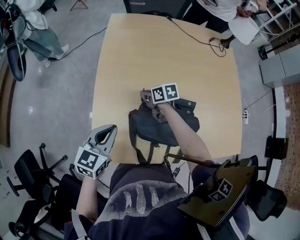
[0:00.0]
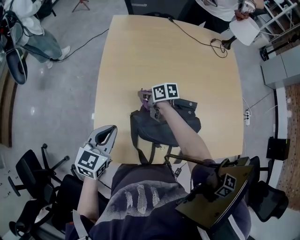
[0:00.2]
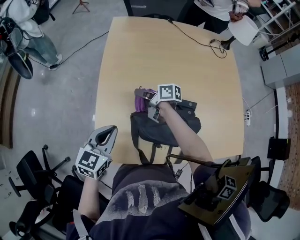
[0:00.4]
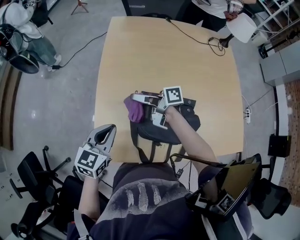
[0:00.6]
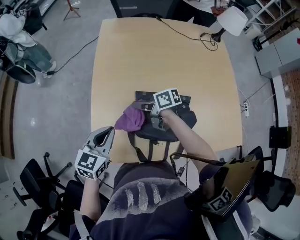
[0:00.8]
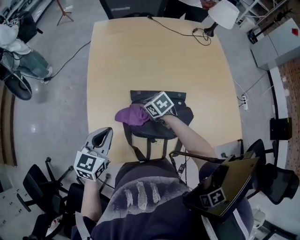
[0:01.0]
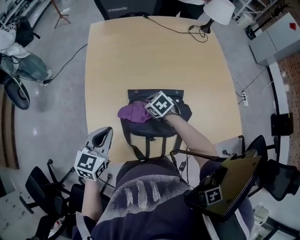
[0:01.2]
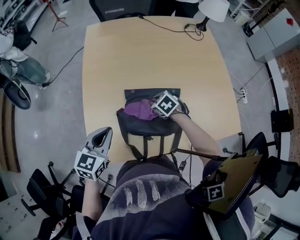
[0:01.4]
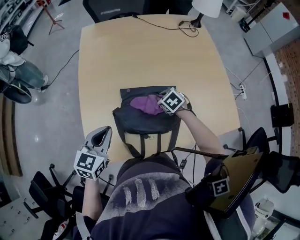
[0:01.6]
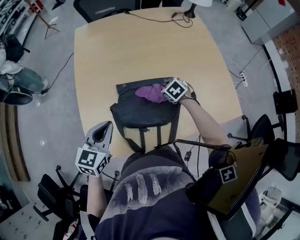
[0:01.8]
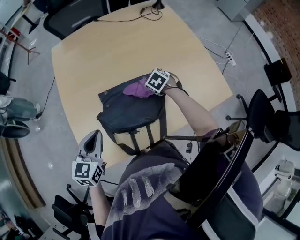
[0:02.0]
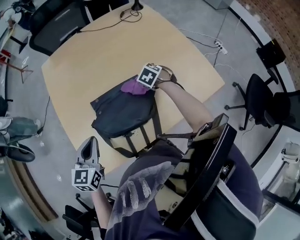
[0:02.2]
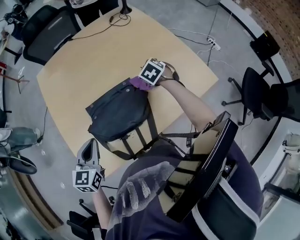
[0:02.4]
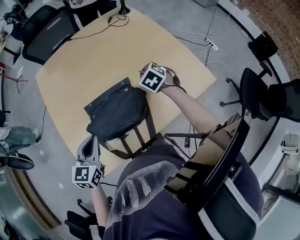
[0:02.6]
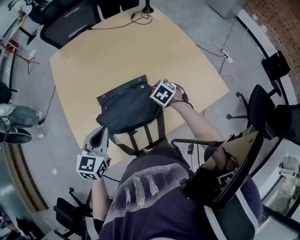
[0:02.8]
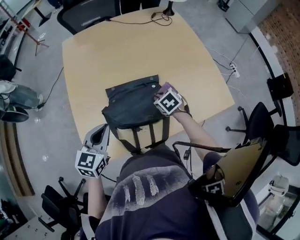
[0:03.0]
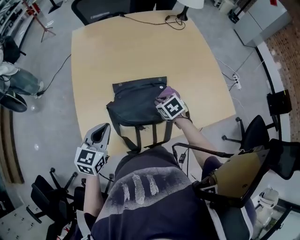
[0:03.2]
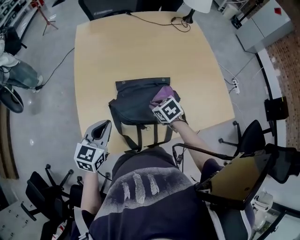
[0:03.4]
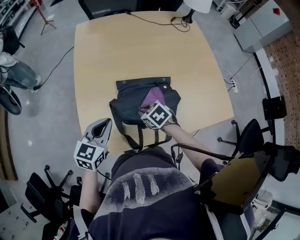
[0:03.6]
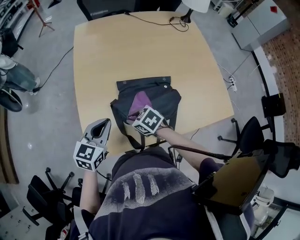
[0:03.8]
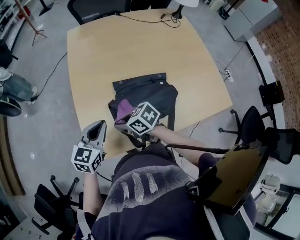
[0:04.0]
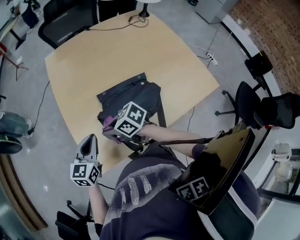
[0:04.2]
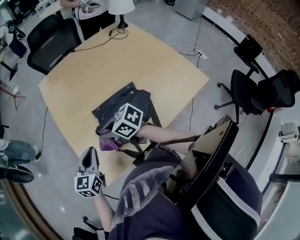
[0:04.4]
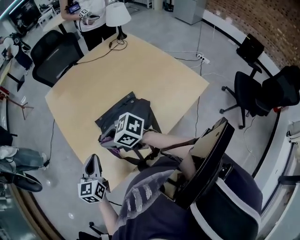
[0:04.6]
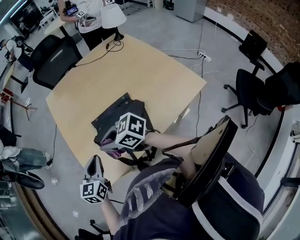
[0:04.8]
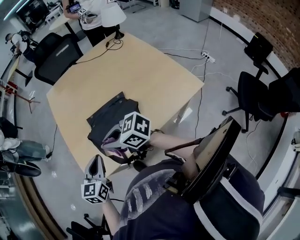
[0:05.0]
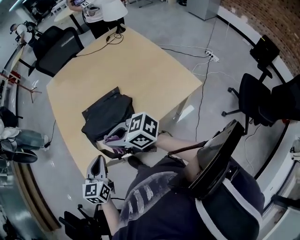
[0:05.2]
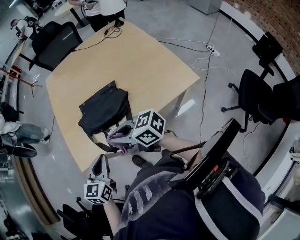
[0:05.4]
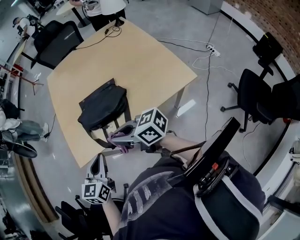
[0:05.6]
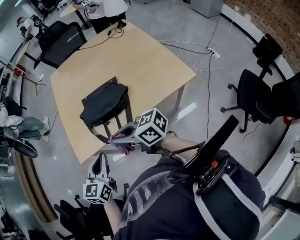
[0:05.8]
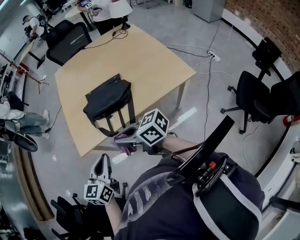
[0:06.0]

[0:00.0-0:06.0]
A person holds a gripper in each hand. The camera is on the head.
0.0 to 1.6 s: The left gripper shifts by about 5 cm. The right gripper shifts approximately 20 cm to the right and backward, and swivels some 40 degrees.
1.6 to 3.0 s: The left gripper goes about 5 cm to the right. Meanwhile the right gripper travels to the right and backward by some 10 cm.
3.0 to 4.4 s: The right gripper shifts by some 30 cm, and points its fingers approximately 40 degrees further upward. Meanwhile the left gripper moves some 10 cm.
4.4 to 6.0 s: The grippers both shift backward by roughly 35 cm.

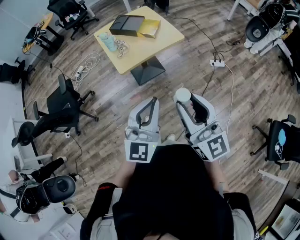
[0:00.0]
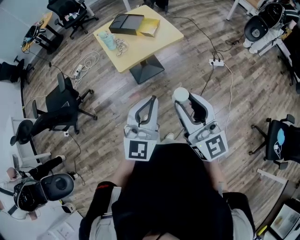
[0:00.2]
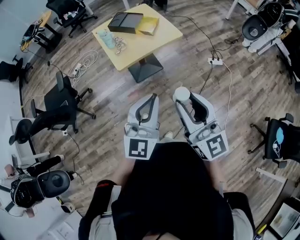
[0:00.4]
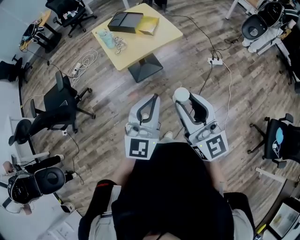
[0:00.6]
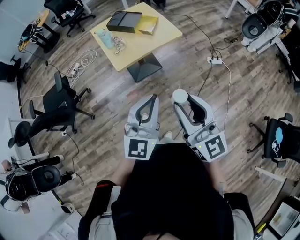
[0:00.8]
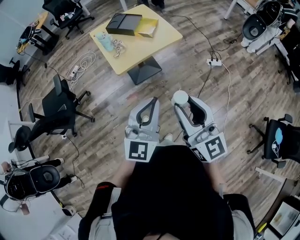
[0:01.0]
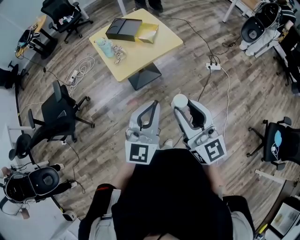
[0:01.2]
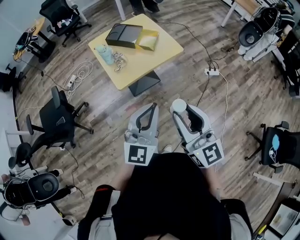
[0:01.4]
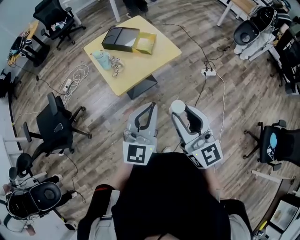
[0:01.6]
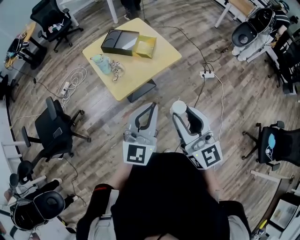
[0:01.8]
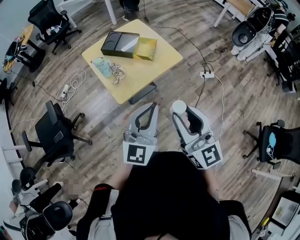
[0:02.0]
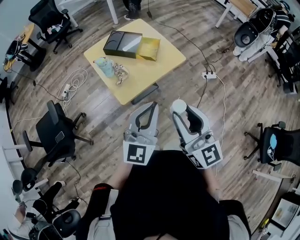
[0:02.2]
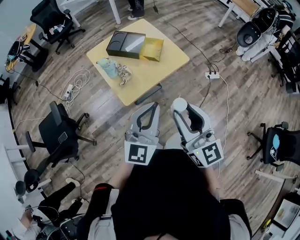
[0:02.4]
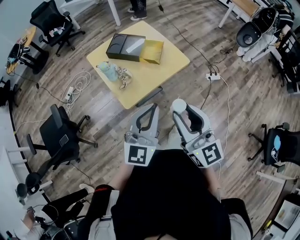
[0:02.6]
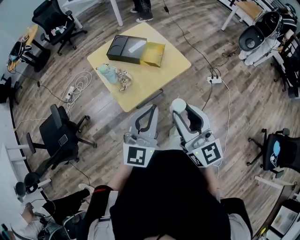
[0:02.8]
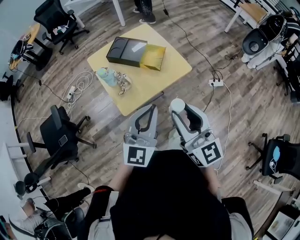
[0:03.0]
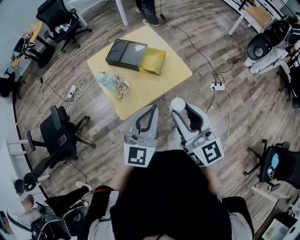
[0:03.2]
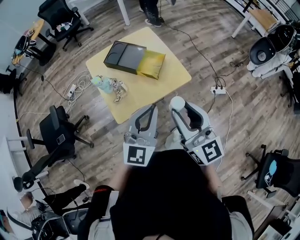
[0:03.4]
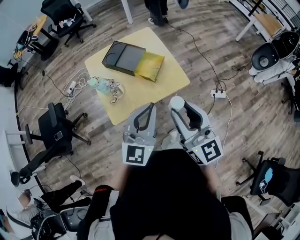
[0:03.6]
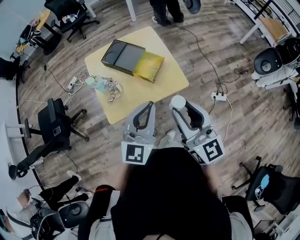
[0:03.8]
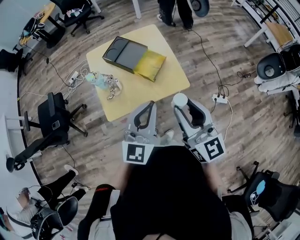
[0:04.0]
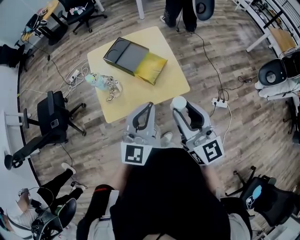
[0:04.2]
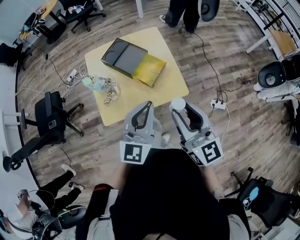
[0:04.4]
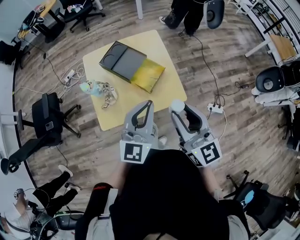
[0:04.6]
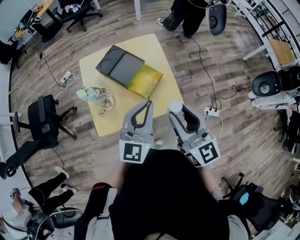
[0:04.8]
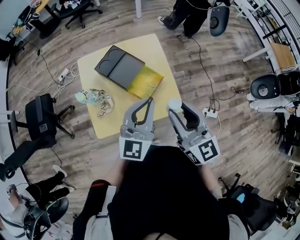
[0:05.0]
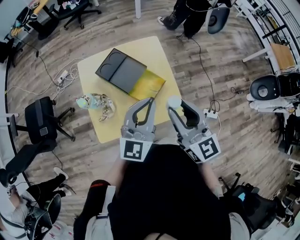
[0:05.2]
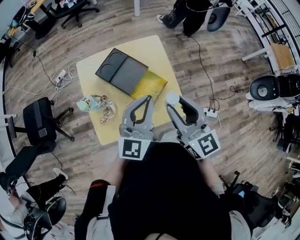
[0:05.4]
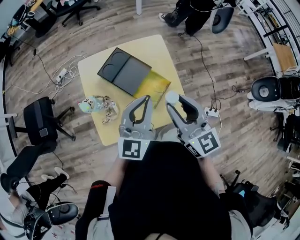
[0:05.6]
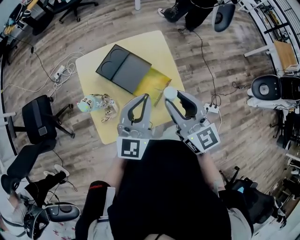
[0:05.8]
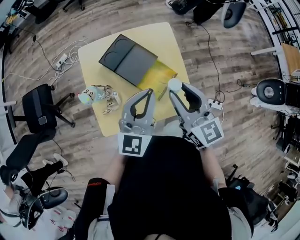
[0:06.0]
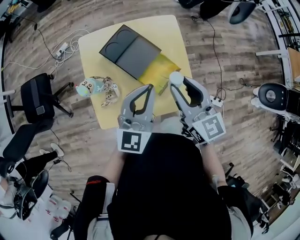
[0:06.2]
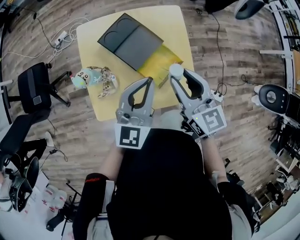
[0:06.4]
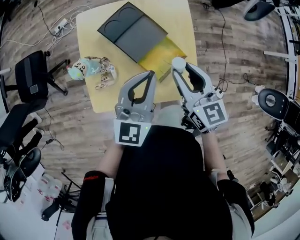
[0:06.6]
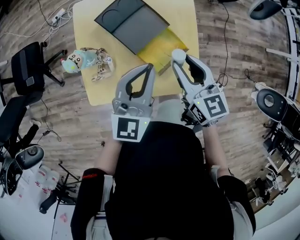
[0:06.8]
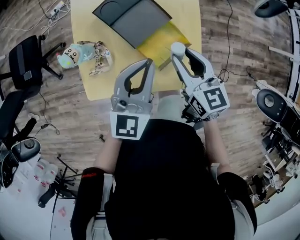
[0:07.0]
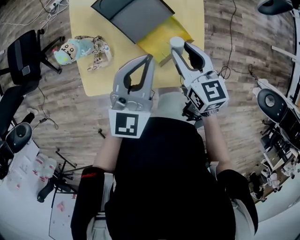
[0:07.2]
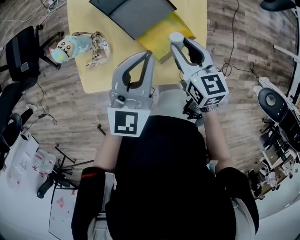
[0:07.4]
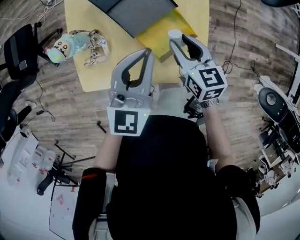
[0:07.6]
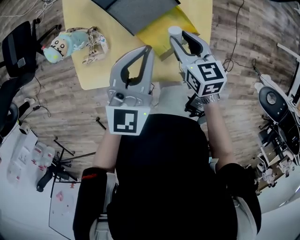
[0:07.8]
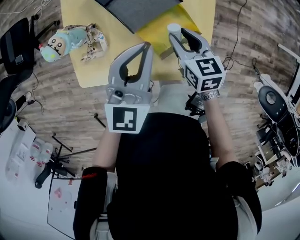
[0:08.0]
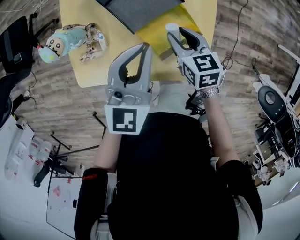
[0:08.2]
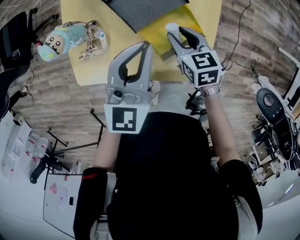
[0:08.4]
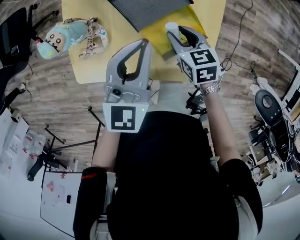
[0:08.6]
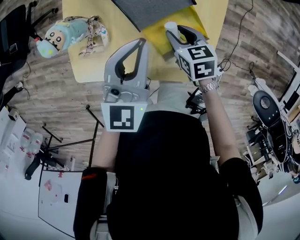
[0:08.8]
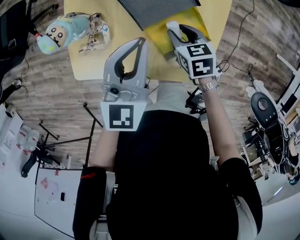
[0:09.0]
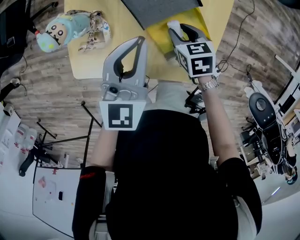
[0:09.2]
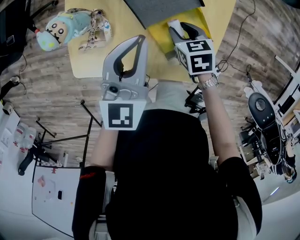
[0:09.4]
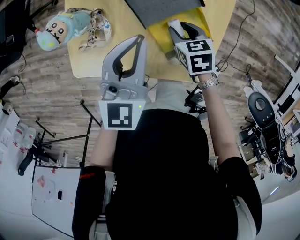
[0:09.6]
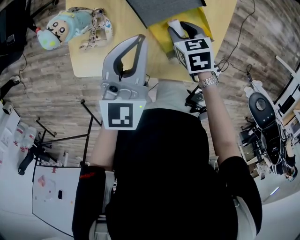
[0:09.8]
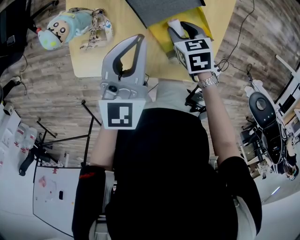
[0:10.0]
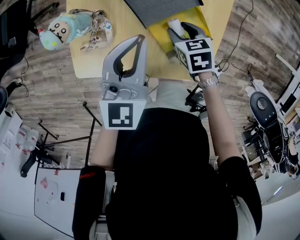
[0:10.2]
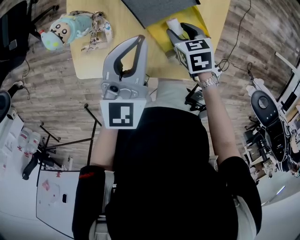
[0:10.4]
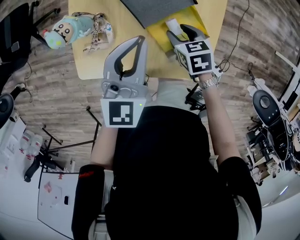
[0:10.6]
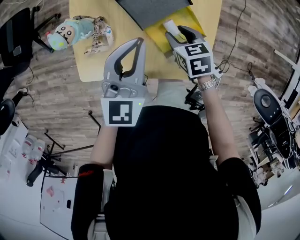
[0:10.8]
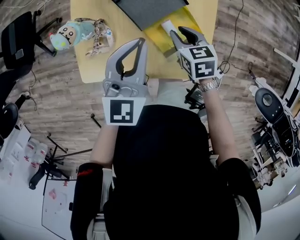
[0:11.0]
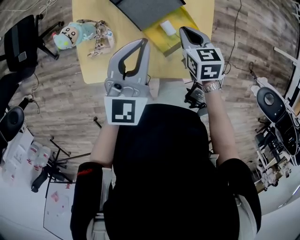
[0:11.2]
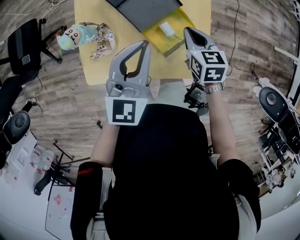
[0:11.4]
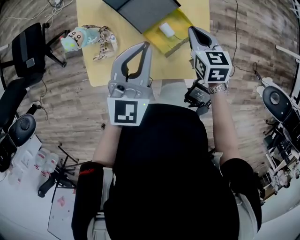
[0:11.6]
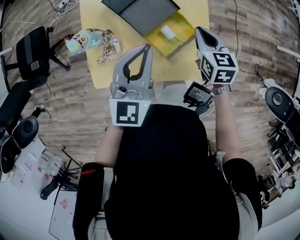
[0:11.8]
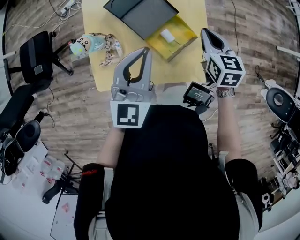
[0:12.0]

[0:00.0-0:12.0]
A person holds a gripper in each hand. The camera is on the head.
0.0 to 1.6 s: The left gripper shifts approximately 15 cm forward, while the right gripper heads forward and to the left, covering roughly 15 cm.
1.6 to 3.0 s: Both grippers travel together forward, roughly 15 cm.
3.0 to 4.4 s: The grippers both shift forward and to the right by some 20 cm.
4.4 to 6.0 s: Both grippers travel together forward, roughly 20 cm.
6.0 to 7.6 s: The right gripper travels downward by about 20 cm, and turns by some 30 degrees. Meanwhile the left gripper is displaced downward by about 10 cm.
7.6 to 9.0 s: The right gripper heads downward, covering some 10 cm, and swivels approximately 30 degrees. The left gripper travels downward by roughly 5 cm.
9.0 to 10.4 s: The grippers move only a little.
10.4 to 12.0 s: The right gripper goes some 20 cm upward and to the right, changes its angle by some 40 degrees, and closes up; the left gripper shifts some 10 cm upward.

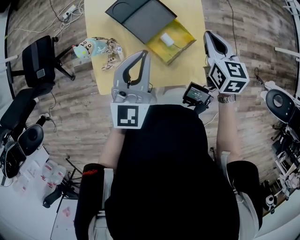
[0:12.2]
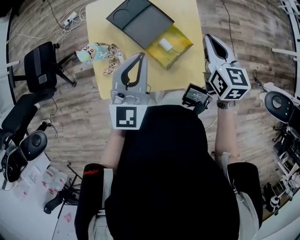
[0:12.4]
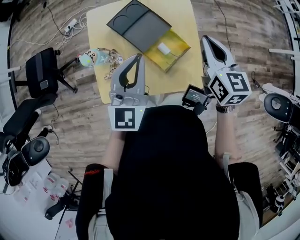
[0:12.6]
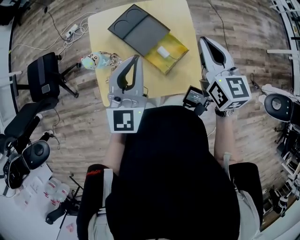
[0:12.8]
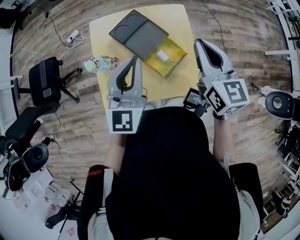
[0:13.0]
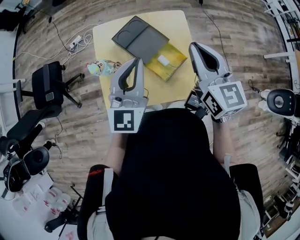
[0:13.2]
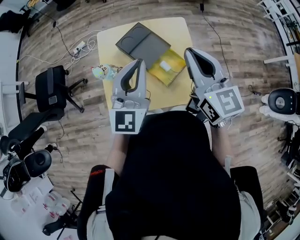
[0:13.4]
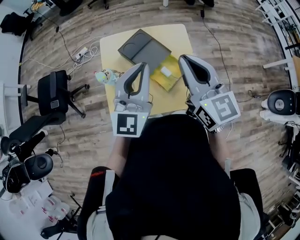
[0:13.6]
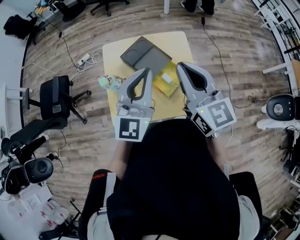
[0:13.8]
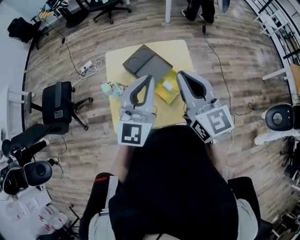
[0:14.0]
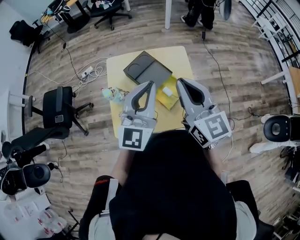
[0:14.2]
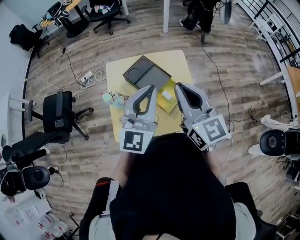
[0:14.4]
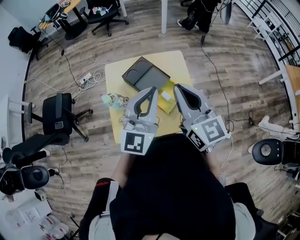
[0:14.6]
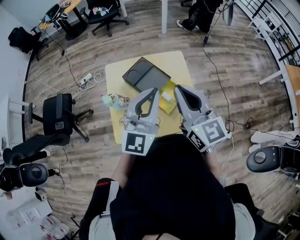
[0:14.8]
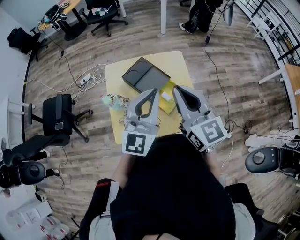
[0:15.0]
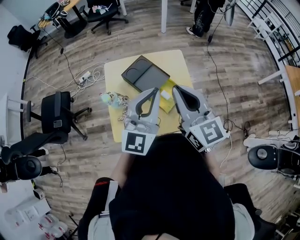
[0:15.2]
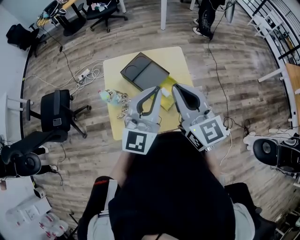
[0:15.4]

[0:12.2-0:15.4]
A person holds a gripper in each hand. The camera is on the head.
12.2 to 13.8 s: The left gripper moves upward, approximately 15 cm; the right gripper travels upward, to the left and backward by roughly 25 cm, and rotates roughly 30 degrees.
13.8 to 15.4 s: The grippers make only small movements.

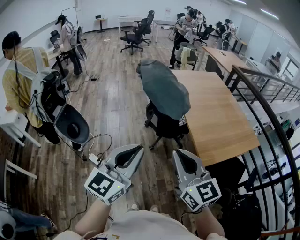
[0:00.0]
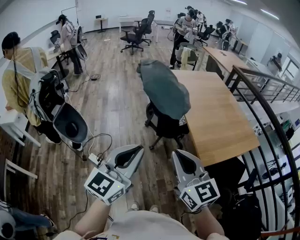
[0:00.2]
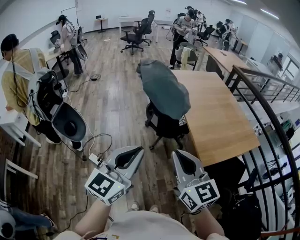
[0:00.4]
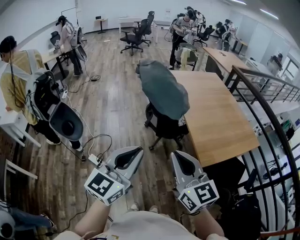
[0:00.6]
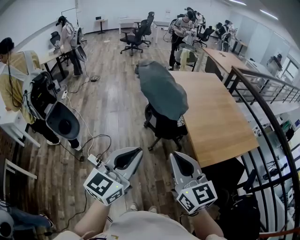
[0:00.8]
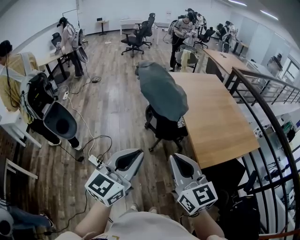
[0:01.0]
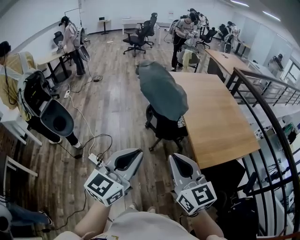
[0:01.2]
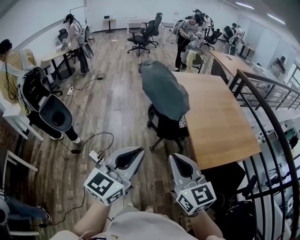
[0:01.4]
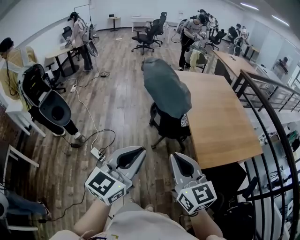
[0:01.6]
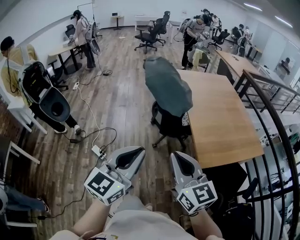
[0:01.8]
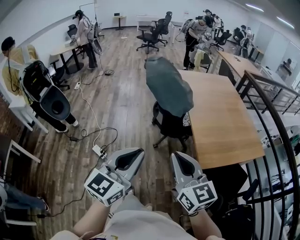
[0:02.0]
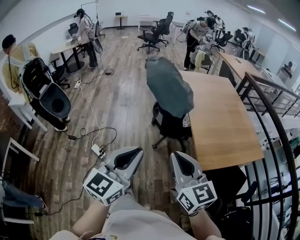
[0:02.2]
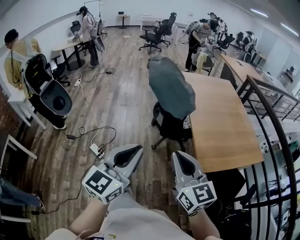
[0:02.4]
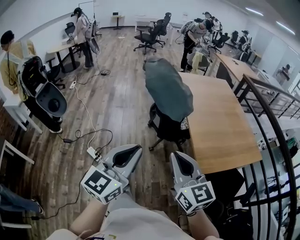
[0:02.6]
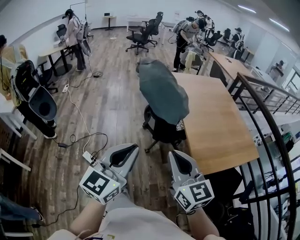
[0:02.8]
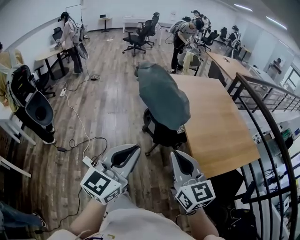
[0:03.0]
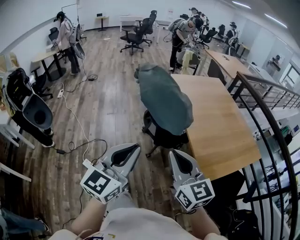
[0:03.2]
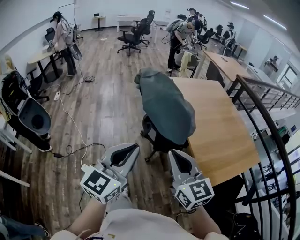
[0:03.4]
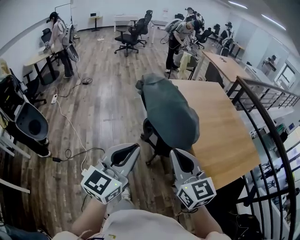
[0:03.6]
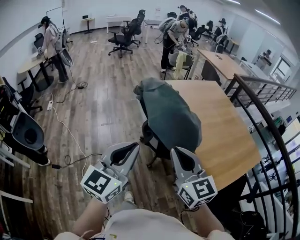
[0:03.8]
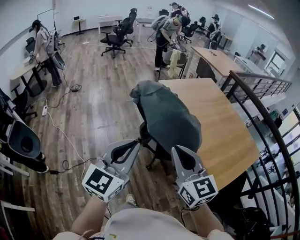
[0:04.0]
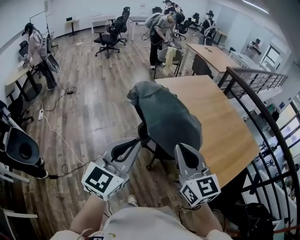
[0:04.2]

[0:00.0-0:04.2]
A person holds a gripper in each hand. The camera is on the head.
0.0 to 1.4 s: The grippers move only a little.
1.4 to 2.8 s: Both grippers travel together forward, some 5 cm.
2.8 to 4.2 s: The two grippers go roughly 40 cm forward and to the left.
